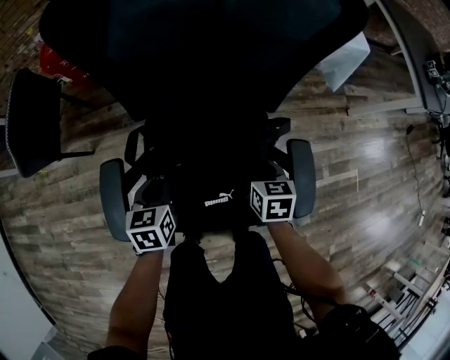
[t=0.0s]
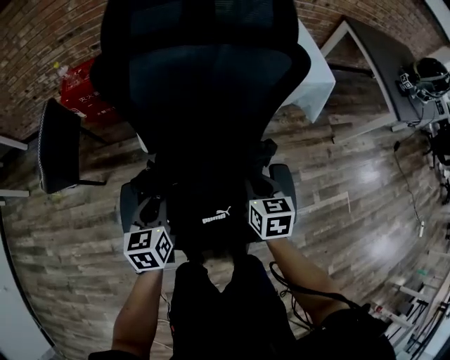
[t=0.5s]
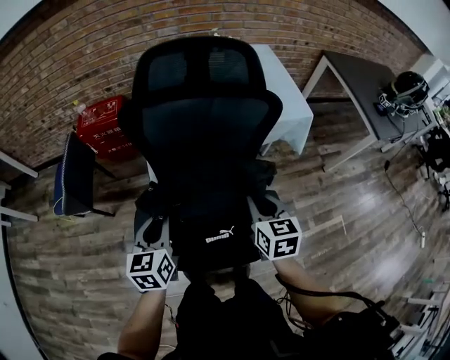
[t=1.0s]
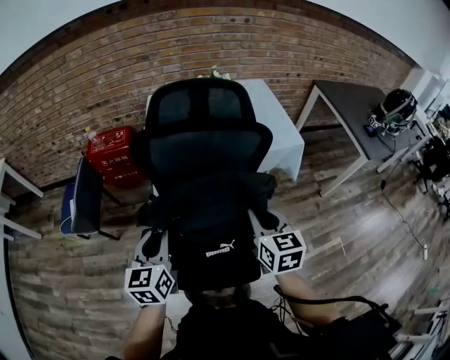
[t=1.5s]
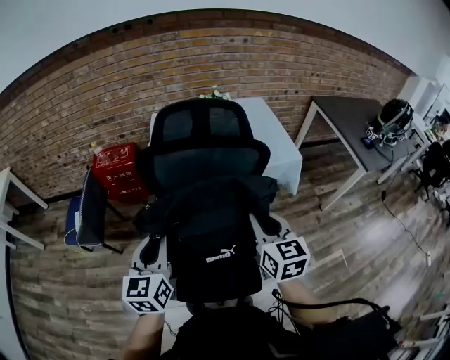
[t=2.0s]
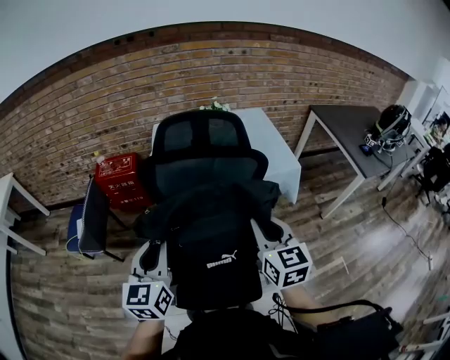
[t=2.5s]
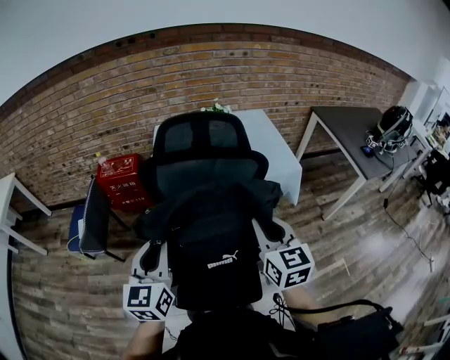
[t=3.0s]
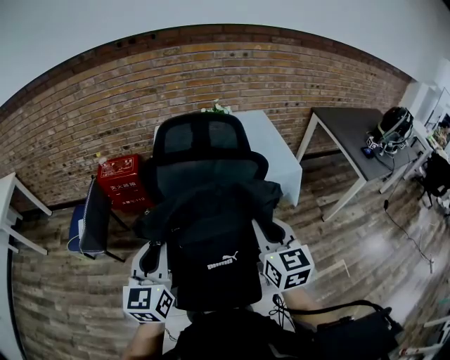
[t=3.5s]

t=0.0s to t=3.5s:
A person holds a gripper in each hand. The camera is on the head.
t=0.0s to t=2.0s: Both grippers travel together upward, some 40 cm. The right gripper angles its fingers upward, by about 30 degrees; the left gripper tips its fingers upward by about 40 degrees.
t=2.0s to t=3.5s: The grippers stay close to where they were, moving slightly.

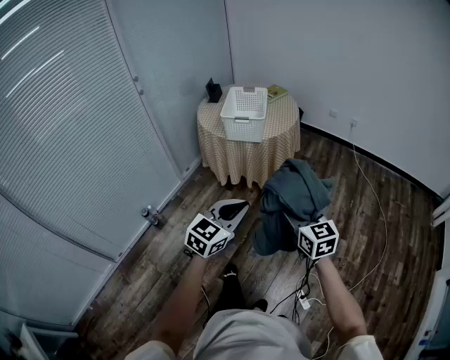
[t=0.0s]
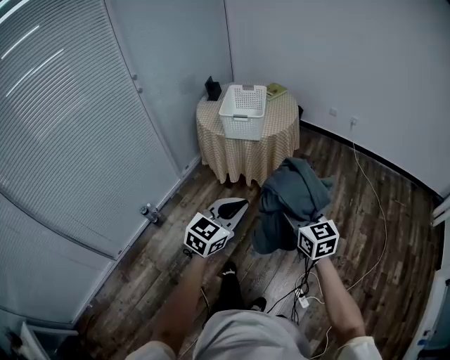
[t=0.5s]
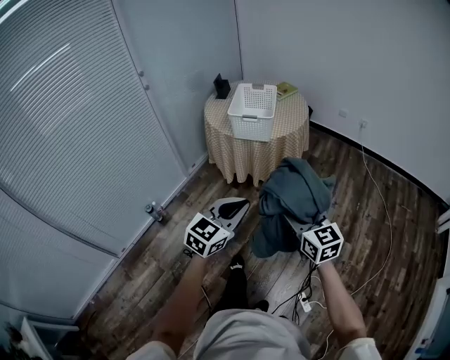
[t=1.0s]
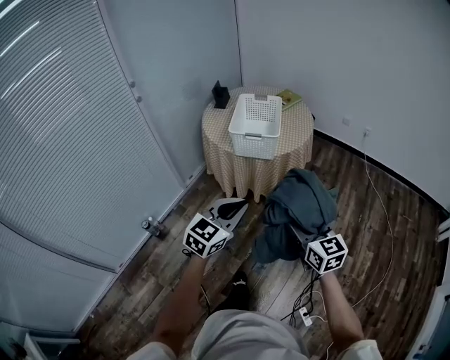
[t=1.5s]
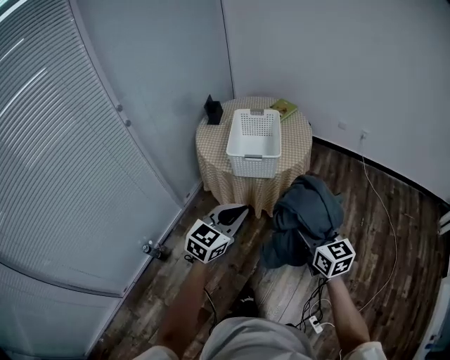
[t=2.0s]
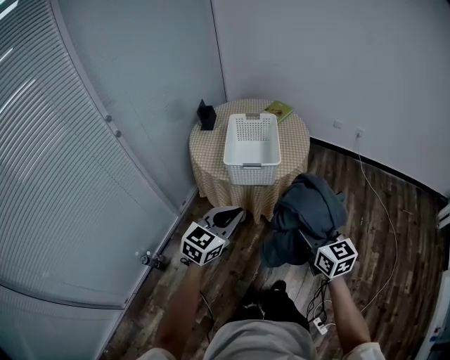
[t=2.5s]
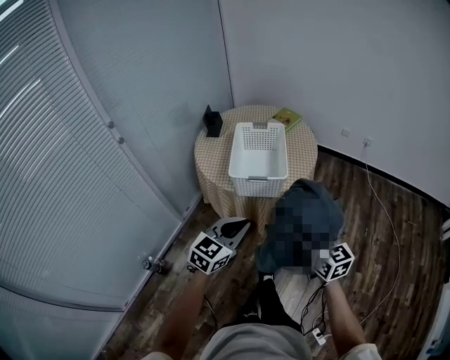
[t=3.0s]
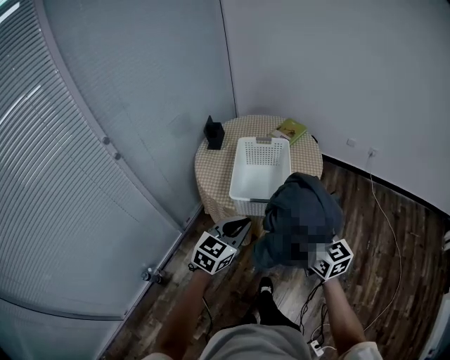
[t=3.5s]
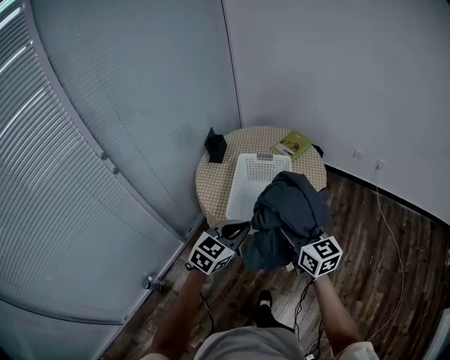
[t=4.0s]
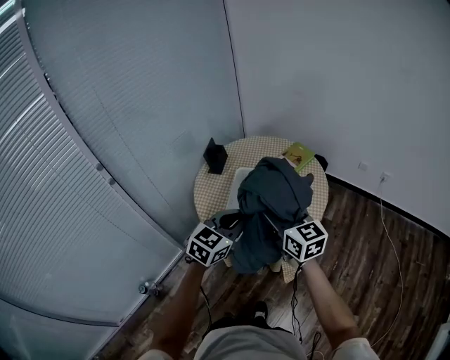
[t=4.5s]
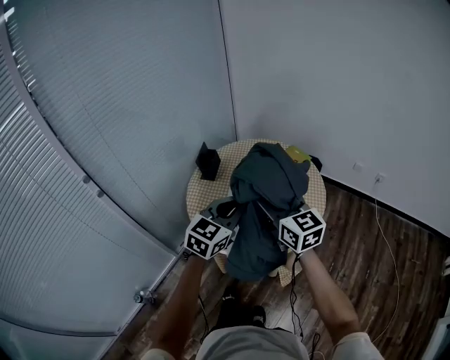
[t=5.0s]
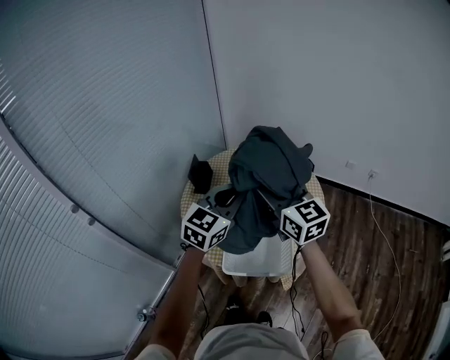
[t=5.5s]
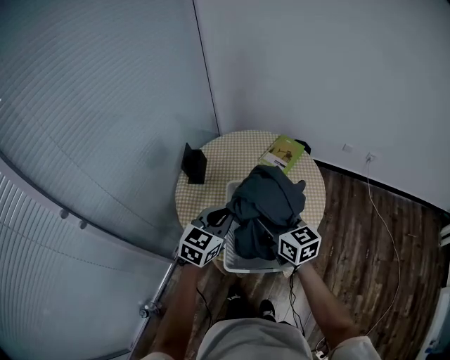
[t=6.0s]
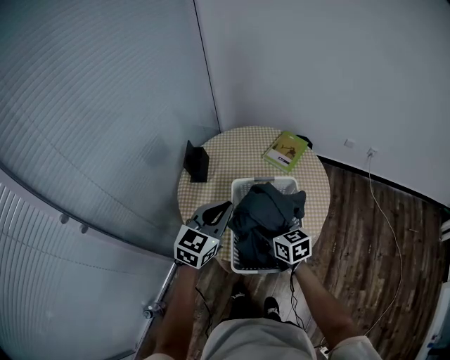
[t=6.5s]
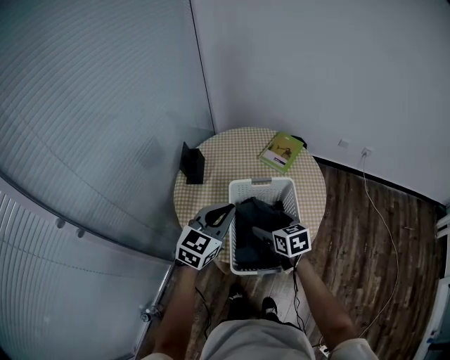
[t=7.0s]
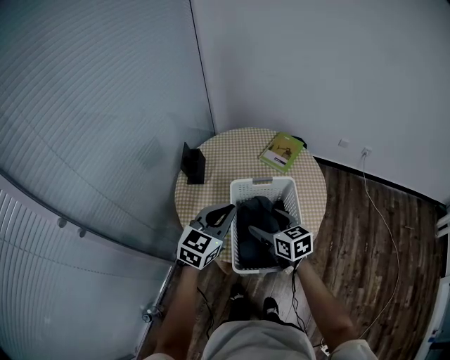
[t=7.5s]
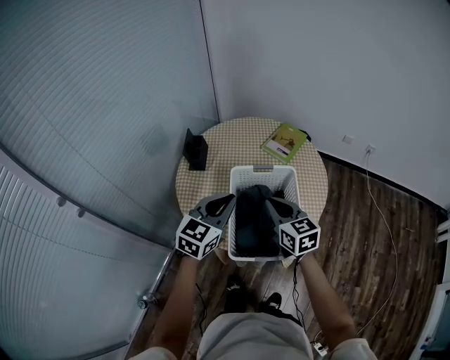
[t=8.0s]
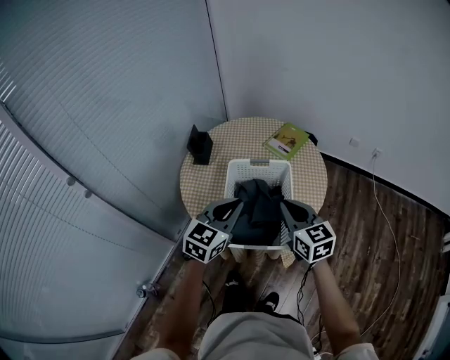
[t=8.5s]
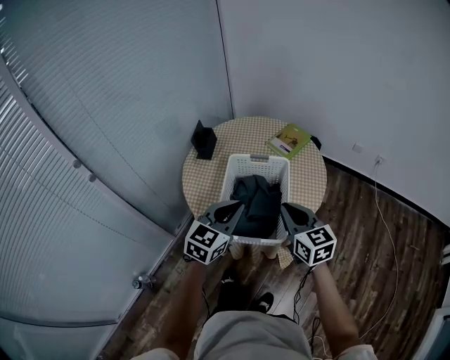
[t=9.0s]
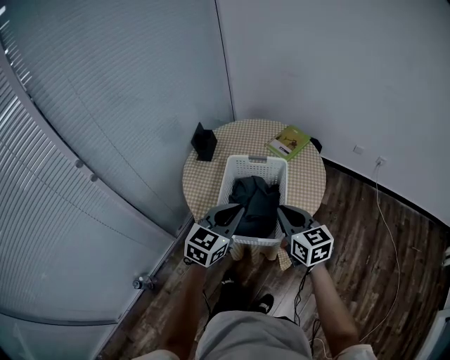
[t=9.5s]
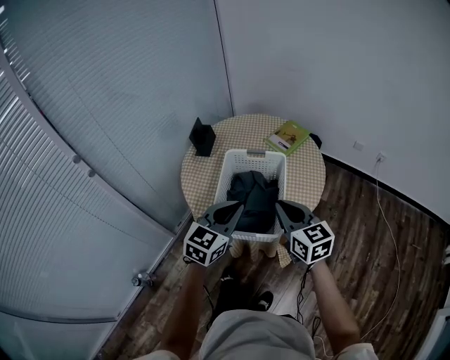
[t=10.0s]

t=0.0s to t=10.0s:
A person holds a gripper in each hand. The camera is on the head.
t=0.0s to t=2.0s: The left gripper shifts about 25 cm forward and to the left, while the right gripper shifts approximately 20 cm forward.
t=2.0s to t=4.0s: The two grippers go about 25 cm forward.
t=4.0s to t=6.0s: Both grippers travel together forward, roughly 25 cm.
t=6.0s to t=8.0s: The right gripper travels downward and back again, roughly 10 cm each way, and closes.
t=8.0s to t=10.0s: Both grippers travel together backward and to the right, about 15 cm.

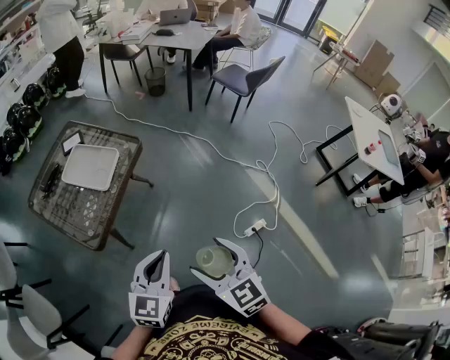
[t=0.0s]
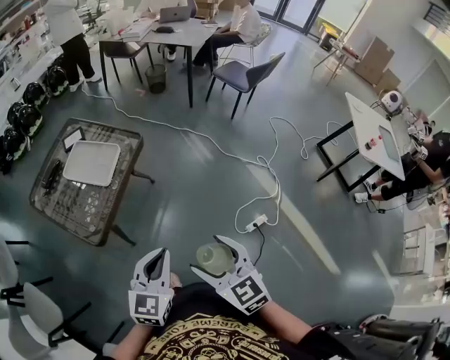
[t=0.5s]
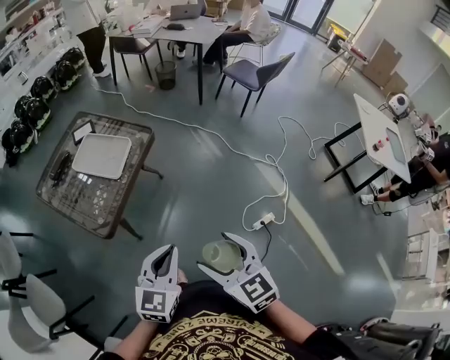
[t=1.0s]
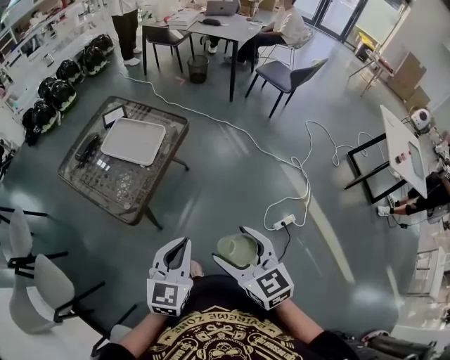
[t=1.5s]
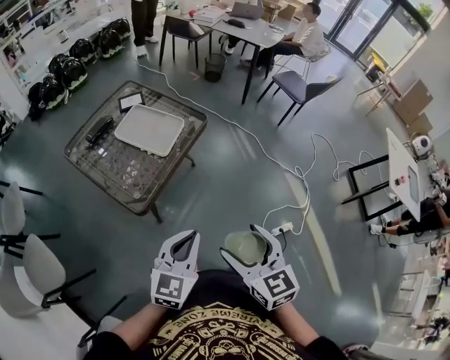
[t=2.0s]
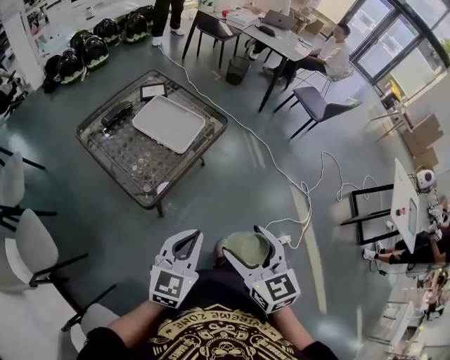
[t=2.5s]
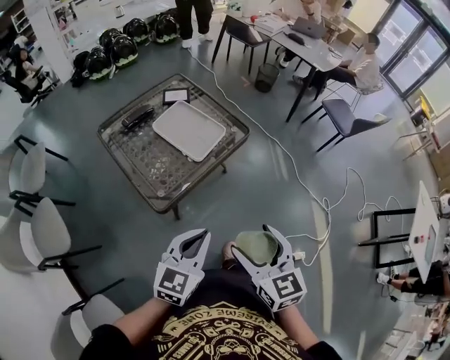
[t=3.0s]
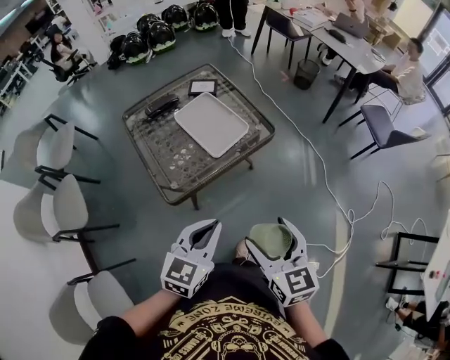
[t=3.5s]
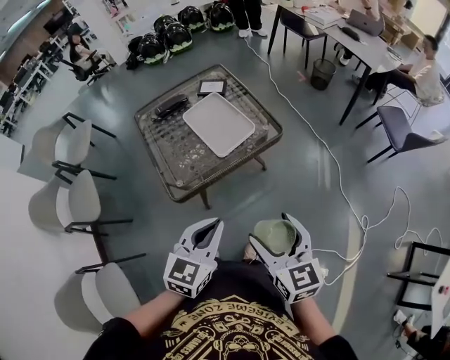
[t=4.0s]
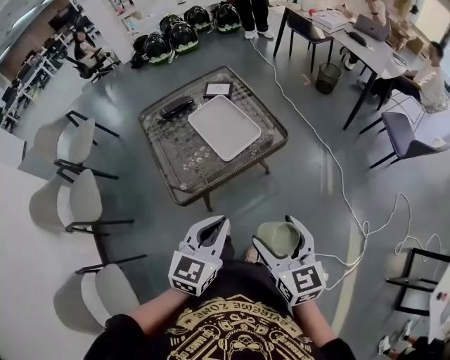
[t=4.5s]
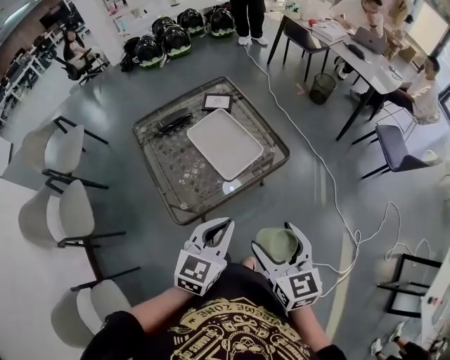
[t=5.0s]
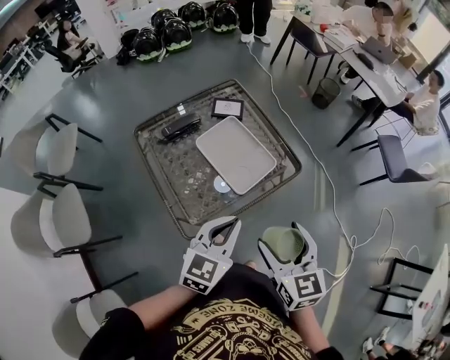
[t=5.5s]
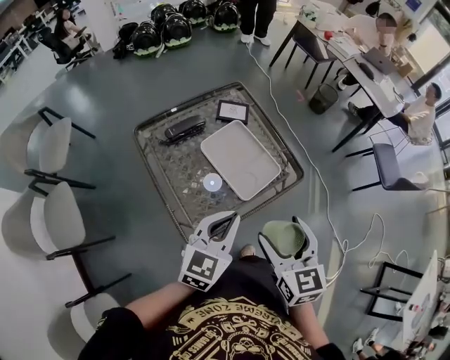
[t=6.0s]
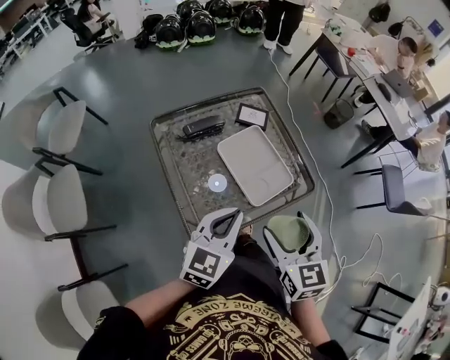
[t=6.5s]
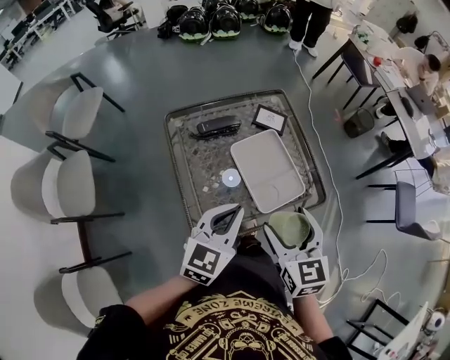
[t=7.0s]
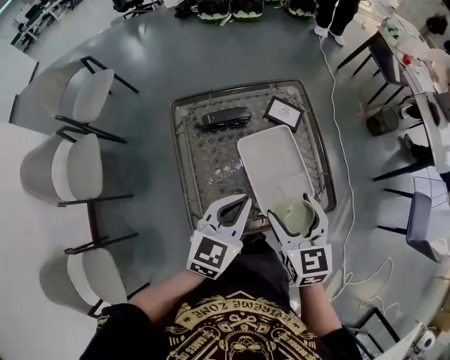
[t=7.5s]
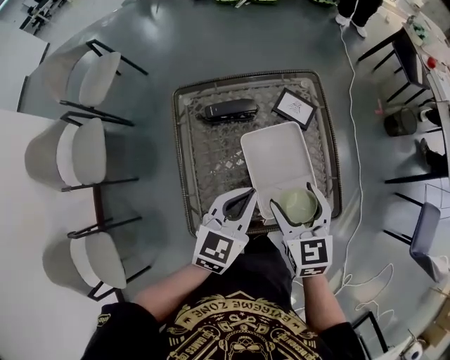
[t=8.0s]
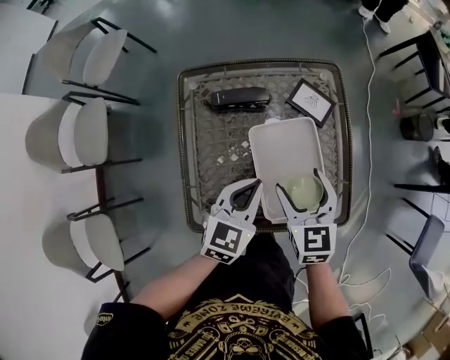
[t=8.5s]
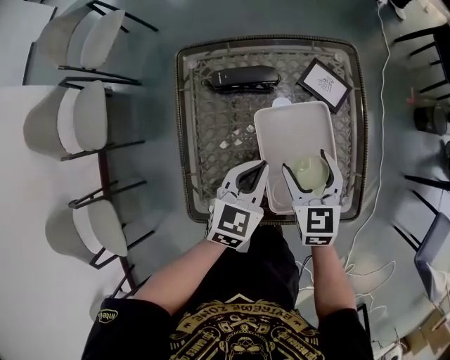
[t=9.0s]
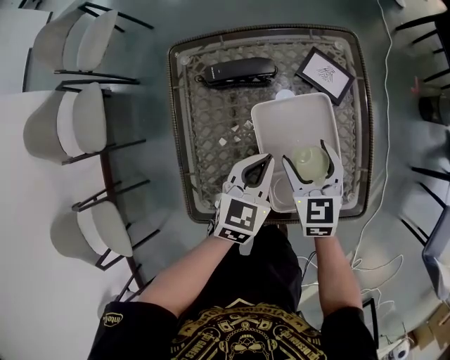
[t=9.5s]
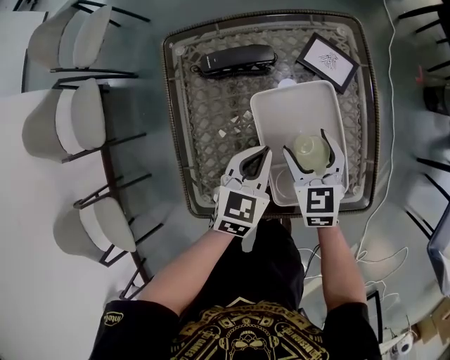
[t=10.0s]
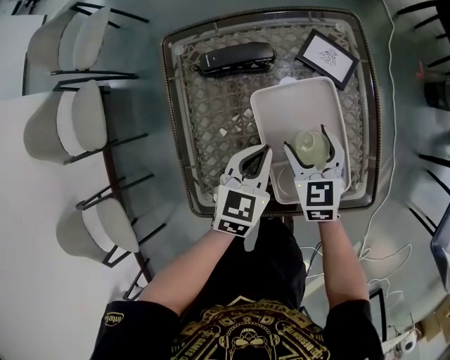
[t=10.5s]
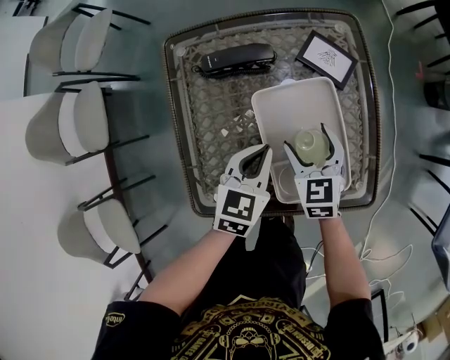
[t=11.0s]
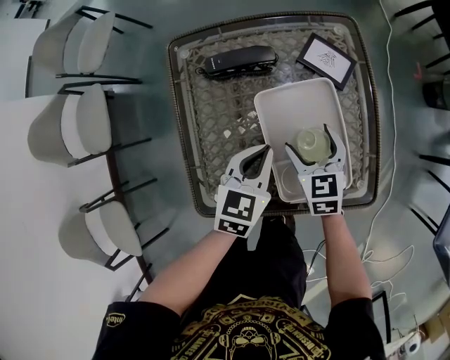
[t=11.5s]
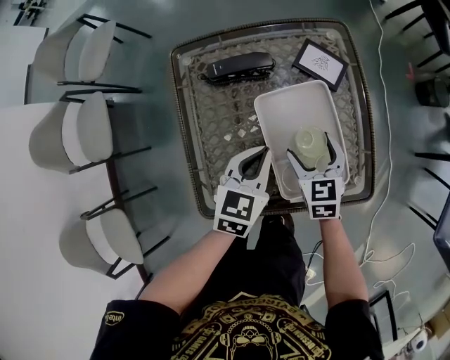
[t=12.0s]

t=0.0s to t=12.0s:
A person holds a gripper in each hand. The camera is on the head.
t=0.0s to t=2.0s: The grippers both shift to the left by some 10 cm.
t=2.0s to t=4.0s: The right gripper shifts by roughly 20 cm, and changes its angle by about 20 degrees. The left gripper ends up about 15 cm from where it was, and changes its angle by some 30 degrees.
t=4.0s to t=6.0s: Both grippers move forward and to the left, roughly 25 cm.
t=6.0s to t=8.0s: The two grippers go some 20 cm forward and downward. The left gripper rotates some 30 degrees, while the right gripper rotates approximately 30 degrees.
t=8.0s to t=10.0s: The left gripper goes approximately 15 cm downward. Meanwhile the right gripper travels downward and forward by about 20 cm.
t=10.0s to t=12.0s: The grippers make only small movements.

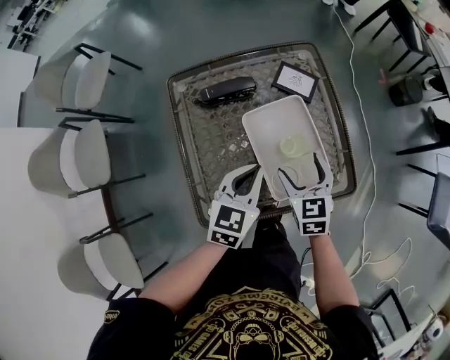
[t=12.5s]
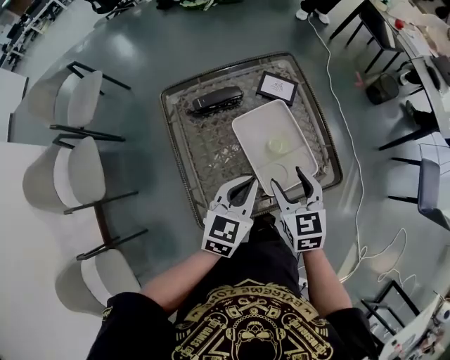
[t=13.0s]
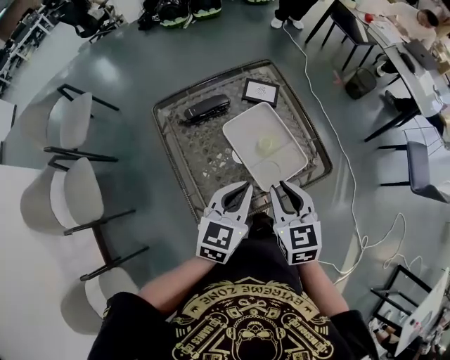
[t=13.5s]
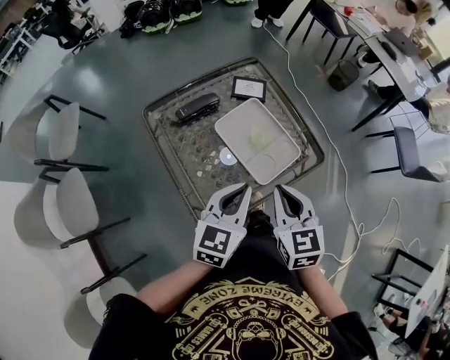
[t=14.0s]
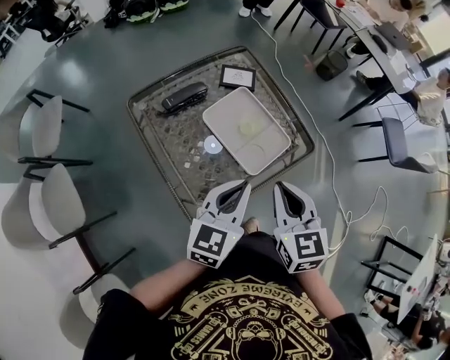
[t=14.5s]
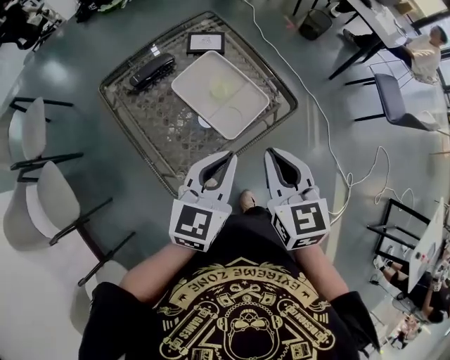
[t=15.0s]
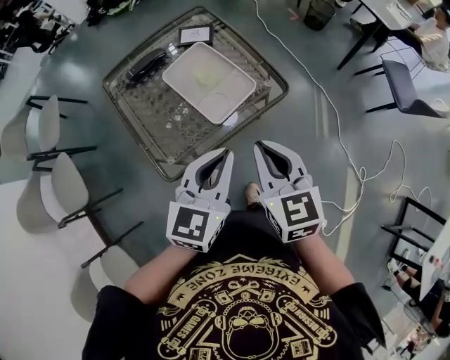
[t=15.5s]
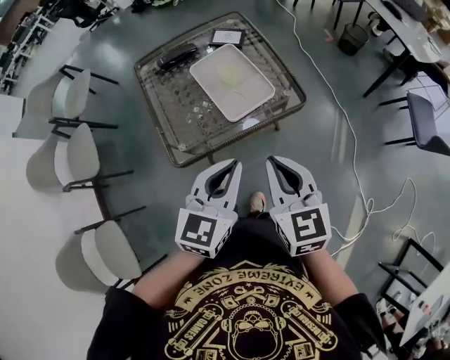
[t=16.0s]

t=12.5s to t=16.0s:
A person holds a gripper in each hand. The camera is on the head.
t=12.5s to t=14.5s: The right gripper travels upward and backward by some 25 cm, changes its angle by about 20 degrees, and closes, while the left gripper travels backward and upward by approximately 15 cm, and swivels some 30 degrees.
t=14.5s to t=16.0s: Both grippers move to the right and backward, about 20 cm.
